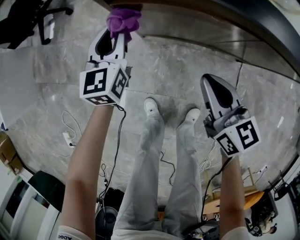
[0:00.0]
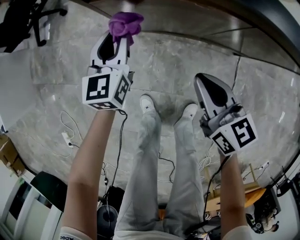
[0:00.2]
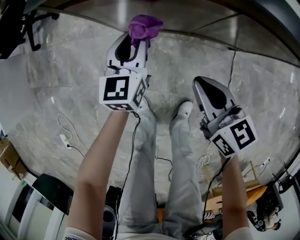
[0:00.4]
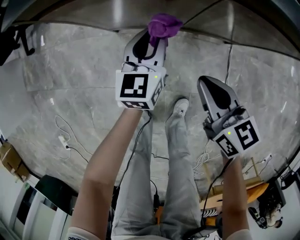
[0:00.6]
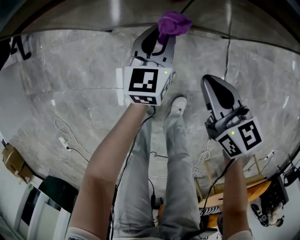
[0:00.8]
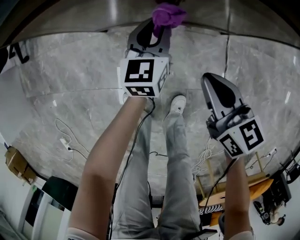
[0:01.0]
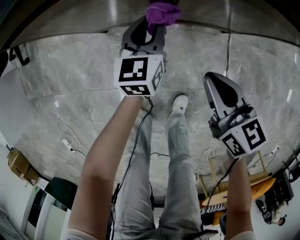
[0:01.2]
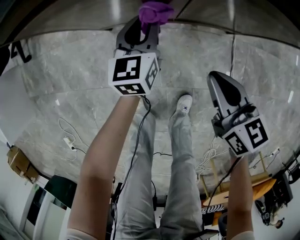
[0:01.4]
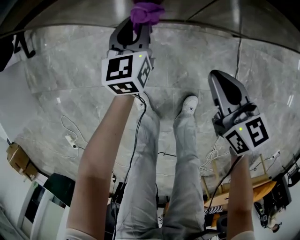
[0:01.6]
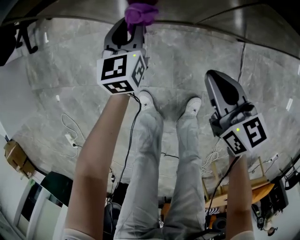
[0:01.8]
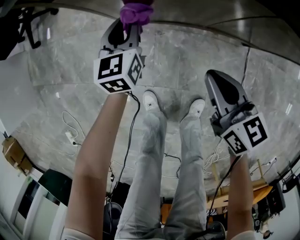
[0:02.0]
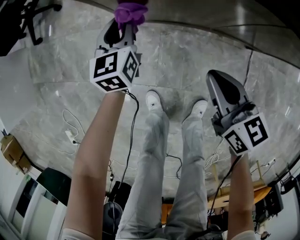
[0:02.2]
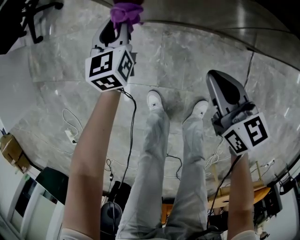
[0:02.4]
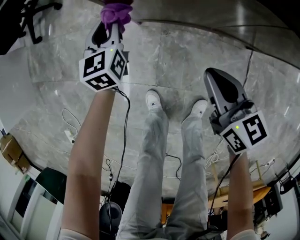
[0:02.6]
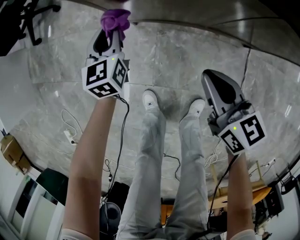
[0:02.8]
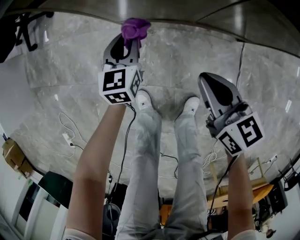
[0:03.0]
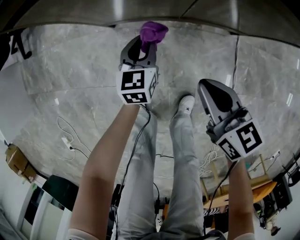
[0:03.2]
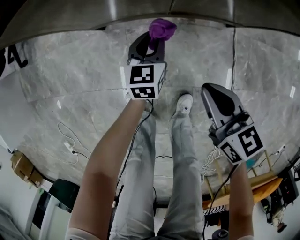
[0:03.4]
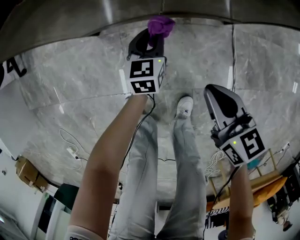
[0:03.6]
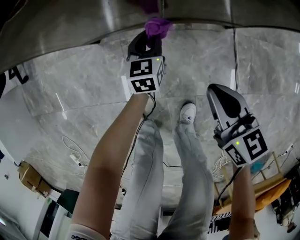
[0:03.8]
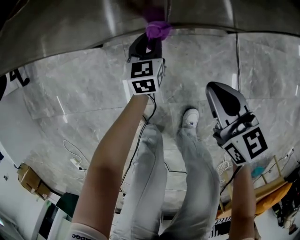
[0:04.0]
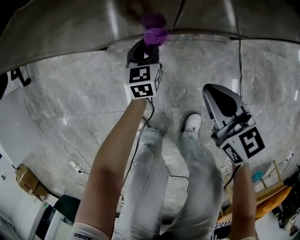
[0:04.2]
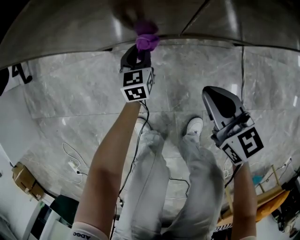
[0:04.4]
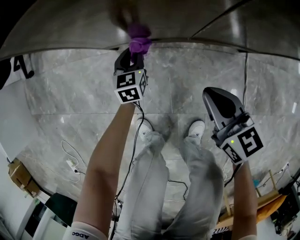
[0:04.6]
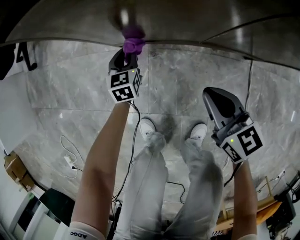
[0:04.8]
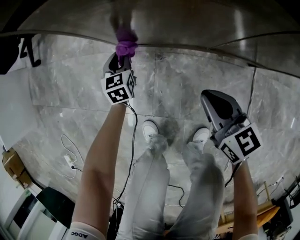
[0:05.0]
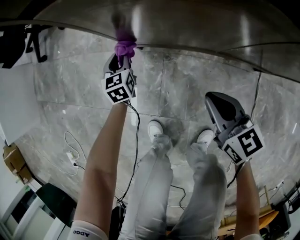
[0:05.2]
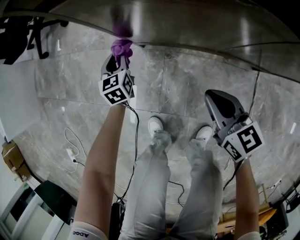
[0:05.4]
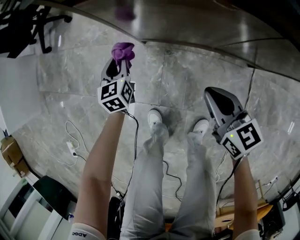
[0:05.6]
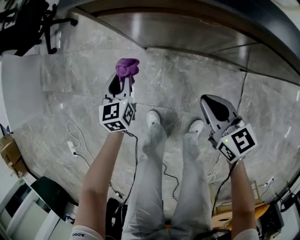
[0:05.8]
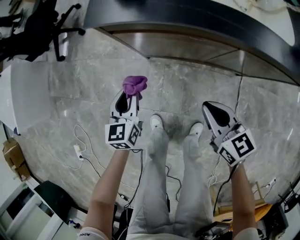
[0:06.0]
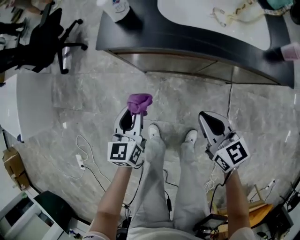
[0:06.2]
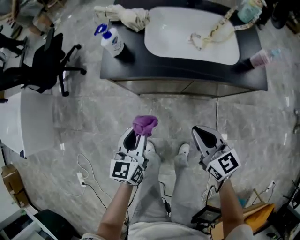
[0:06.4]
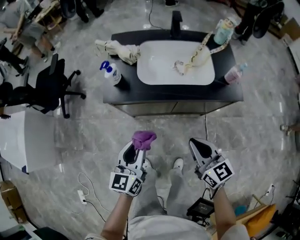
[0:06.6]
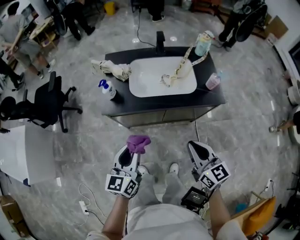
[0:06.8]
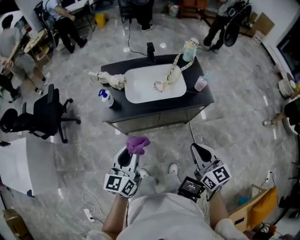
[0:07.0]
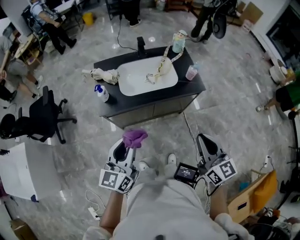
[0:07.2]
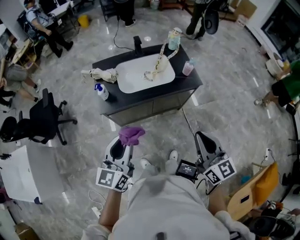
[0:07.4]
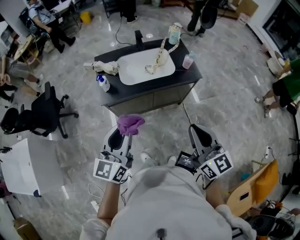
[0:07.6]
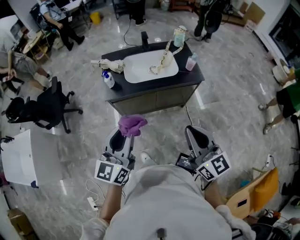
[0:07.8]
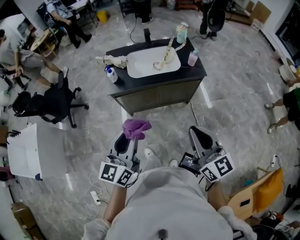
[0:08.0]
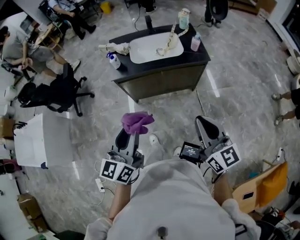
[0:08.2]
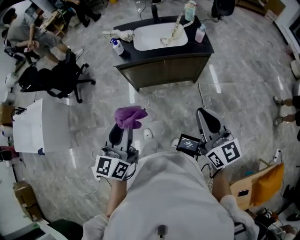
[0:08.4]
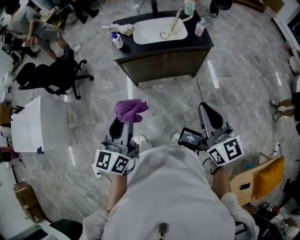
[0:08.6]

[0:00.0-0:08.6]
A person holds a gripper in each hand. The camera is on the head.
0:00.0 to 0:01.4: The left gripper shifts about 30 cm to the right and downward, while the right gripper shifts roughly 20 cm to the right, downward and backward.
0:01.4 to 0:02.8: The right gripper is displaced to the left and forward by some 15 cm. Meanwhile the left gripper goes some 25 cm to the left.
0:02.8 to 0:04.4: The right gripper moves downward and to the right, about 15 cm. The left gripper is displaced downward and to the right by about 30 cm.
0:04.4 to 0:05.8: The left gripper travels to the left and upward by approximately 30 cm. Meanwhile the right gripper is displaced upward and to the left by roughly 15 cm.
0:05.8 to 0:07.2: Both grippers move upward, about 60 cm. The right gripper turns by approximately 40 degrees. The left gripper changes its angle by approximately 50 degrees.
0:07.2 to 0:08.6: Both grippers travel together backward, roughly 25 cm.

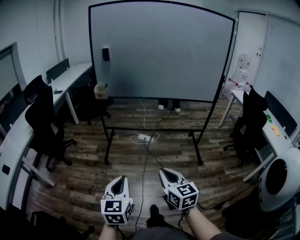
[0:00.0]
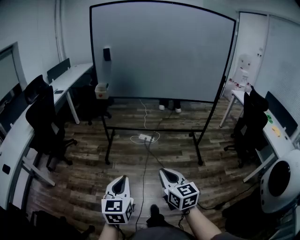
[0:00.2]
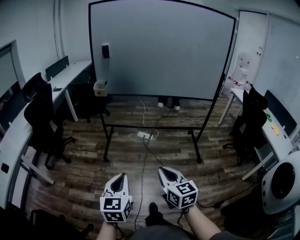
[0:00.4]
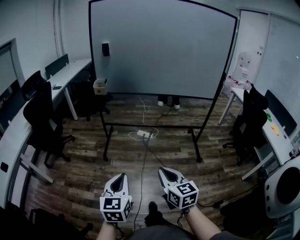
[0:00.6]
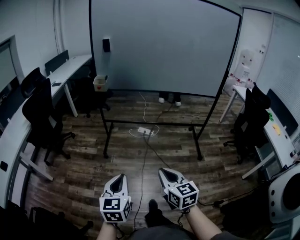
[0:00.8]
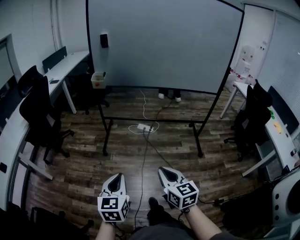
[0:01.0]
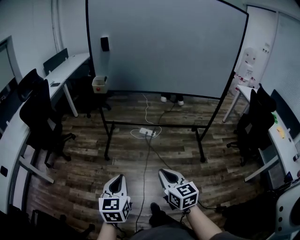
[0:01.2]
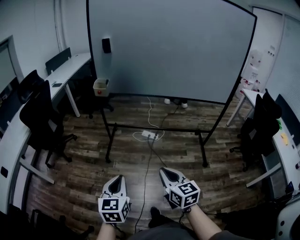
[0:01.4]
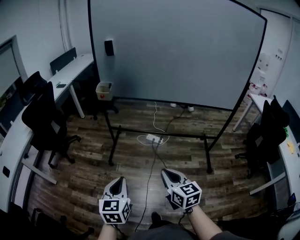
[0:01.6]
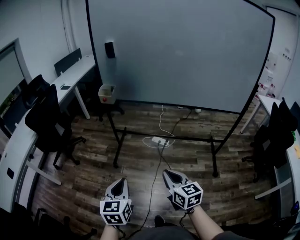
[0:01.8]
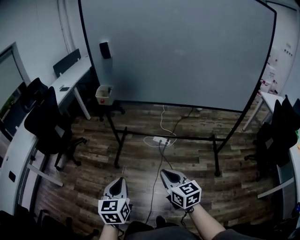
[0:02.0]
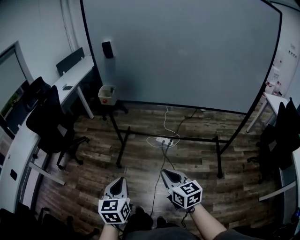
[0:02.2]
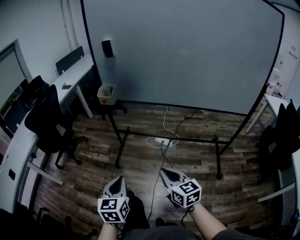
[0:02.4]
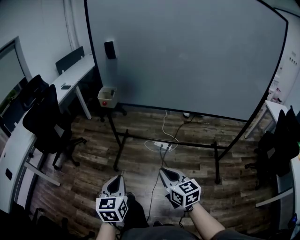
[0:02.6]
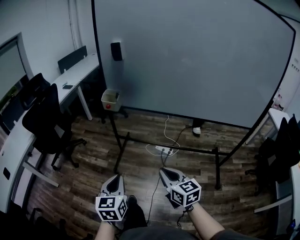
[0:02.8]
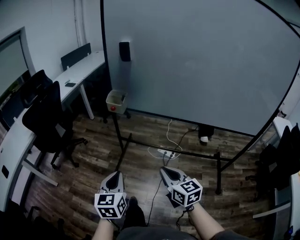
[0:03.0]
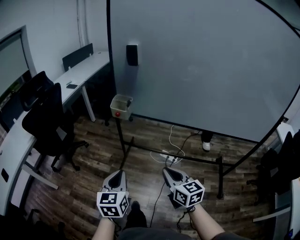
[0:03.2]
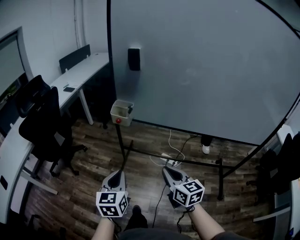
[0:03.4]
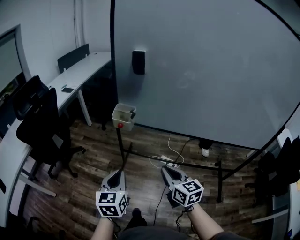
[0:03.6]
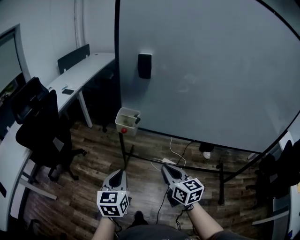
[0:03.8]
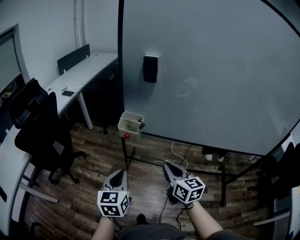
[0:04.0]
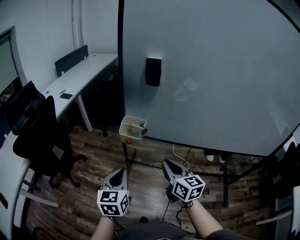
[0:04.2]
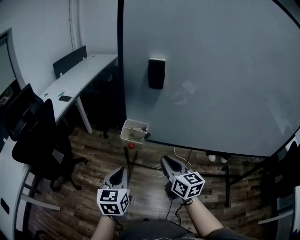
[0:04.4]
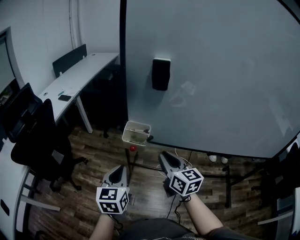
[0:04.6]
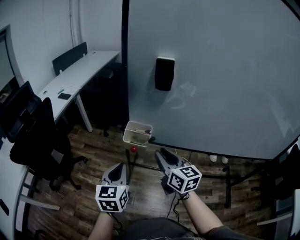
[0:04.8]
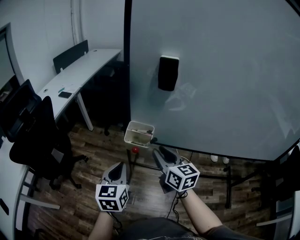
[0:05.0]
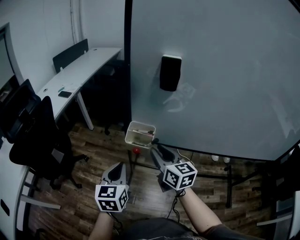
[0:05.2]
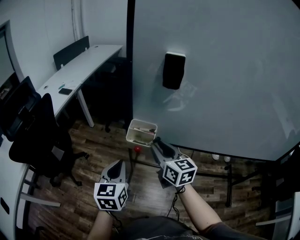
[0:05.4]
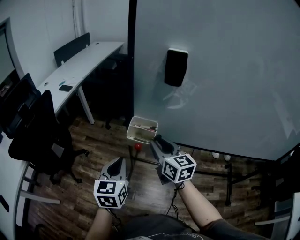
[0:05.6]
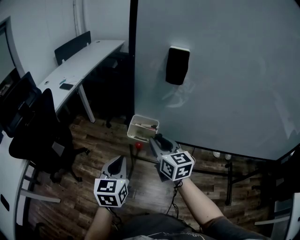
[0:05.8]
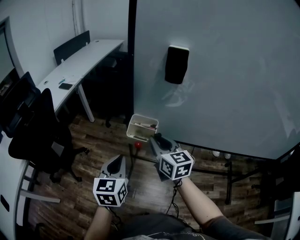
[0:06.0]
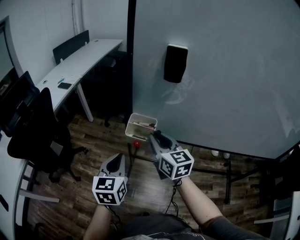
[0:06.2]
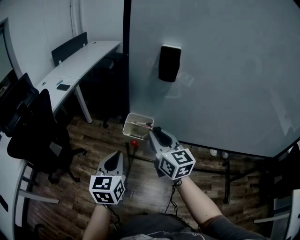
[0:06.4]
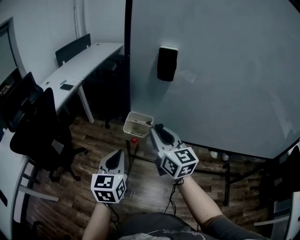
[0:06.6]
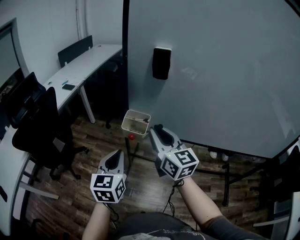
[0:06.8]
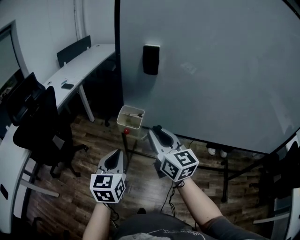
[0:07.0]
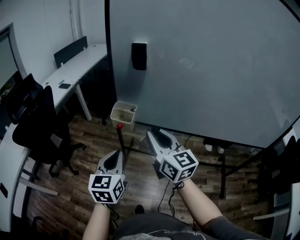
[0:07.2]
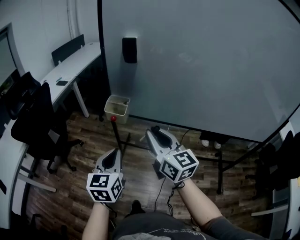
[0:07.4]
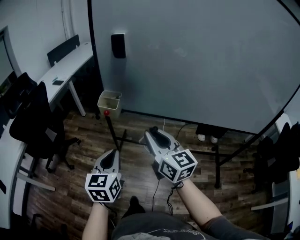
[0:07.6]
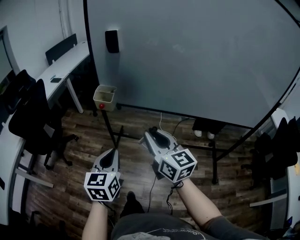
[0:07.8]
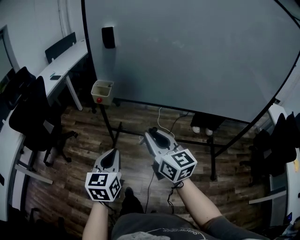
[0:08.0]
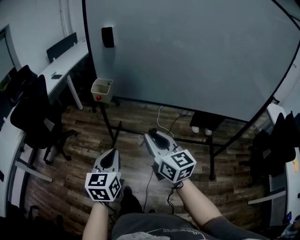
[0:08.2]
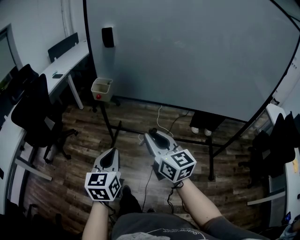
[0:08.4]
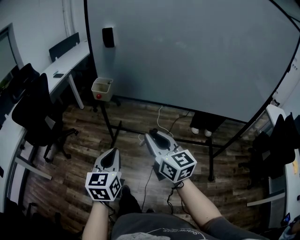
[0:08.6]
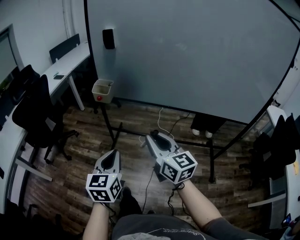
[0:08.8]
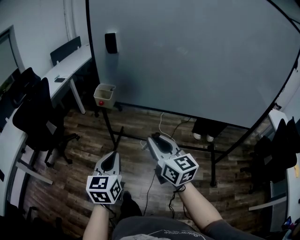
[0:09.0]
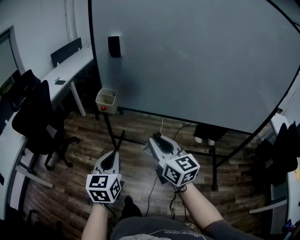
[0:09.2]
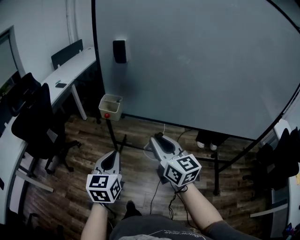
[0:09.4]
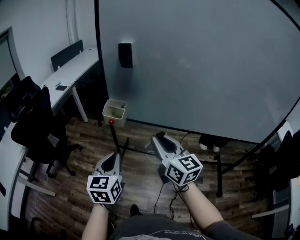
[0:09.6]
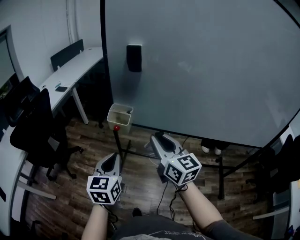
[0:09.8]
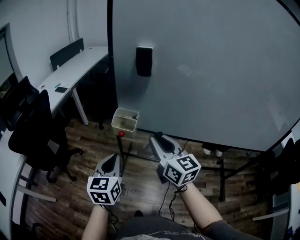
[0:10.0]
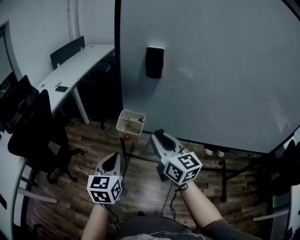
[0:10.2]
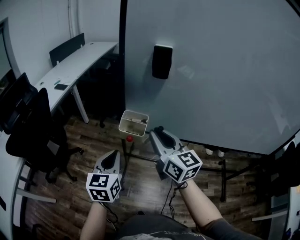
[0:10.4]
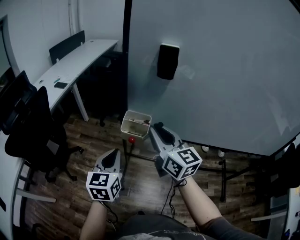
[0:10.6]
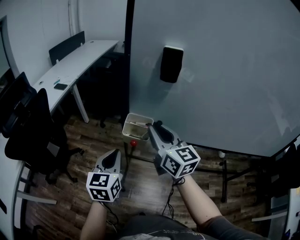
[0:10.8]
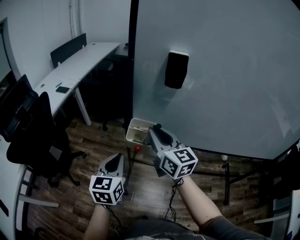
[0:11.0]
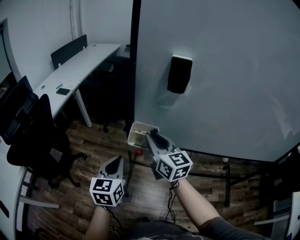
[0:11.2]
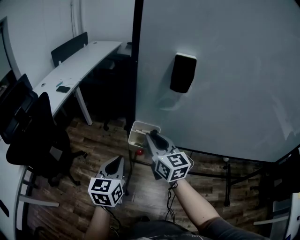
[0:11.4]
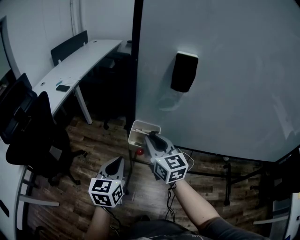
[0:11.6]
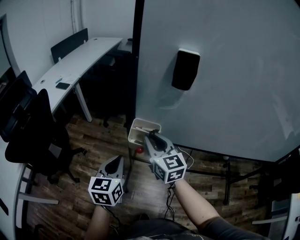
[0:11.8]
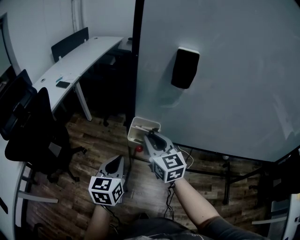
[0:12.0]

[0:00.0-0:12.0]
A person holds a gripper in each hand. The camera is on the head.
0:00.0 to 0:01.6: The two grippers go some 15 cm forward.
0:01.6 to 0:03.0: The two grippers go about 20 cm forward.
0:03.0 to 0:04.4: Both grippers move forward, approximately 30 cm.
0:04.4 to 0:06.0: The left gripper is displaced forward by approximately 5 cm; the right gripper travels forward and to the left by about 15 cm.
0:06.0 to 0:07.6: Both grippers travel together backward and to the right, about 25 cm.
0:07.6 to 0:09.0: The grippers both shift backward by about 10 cm.
0:09.0 to 0:10.4: Both grippers move forward and to the left, some 30 cm.
0:10.4 to 0:12.0: The right gripper moves forward, downward and to the left, roughly 10 cm. Meanwhile the left gripper shifts by approximately 5 cm.

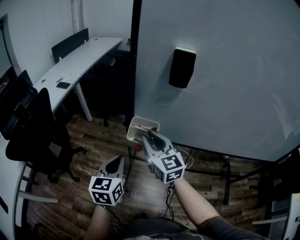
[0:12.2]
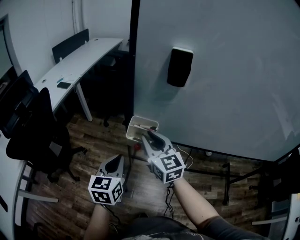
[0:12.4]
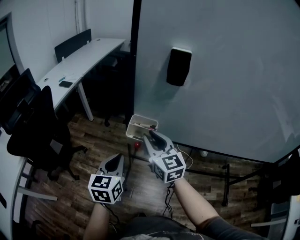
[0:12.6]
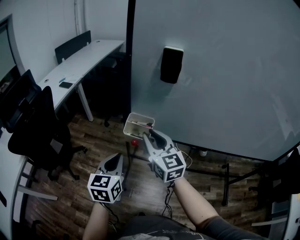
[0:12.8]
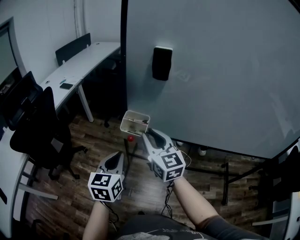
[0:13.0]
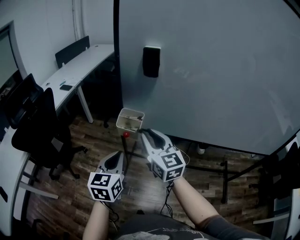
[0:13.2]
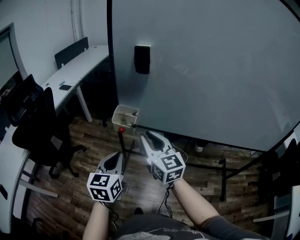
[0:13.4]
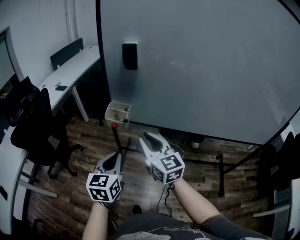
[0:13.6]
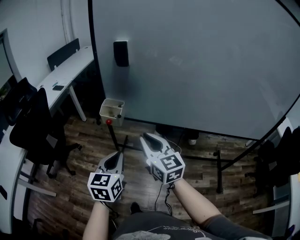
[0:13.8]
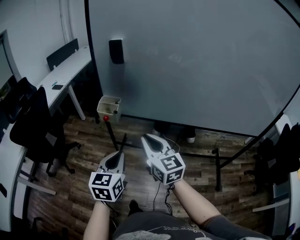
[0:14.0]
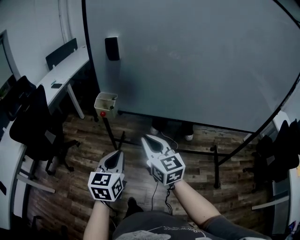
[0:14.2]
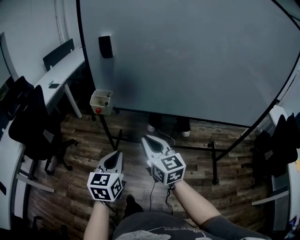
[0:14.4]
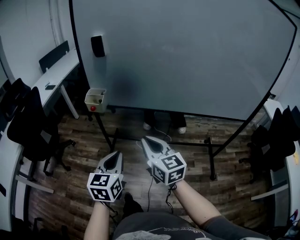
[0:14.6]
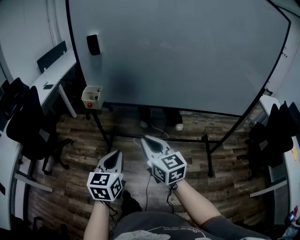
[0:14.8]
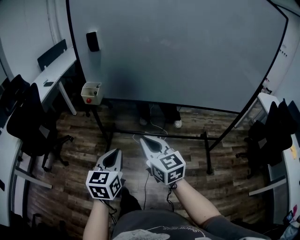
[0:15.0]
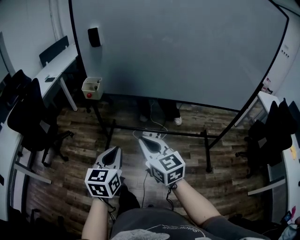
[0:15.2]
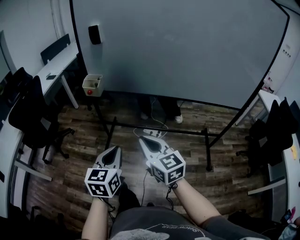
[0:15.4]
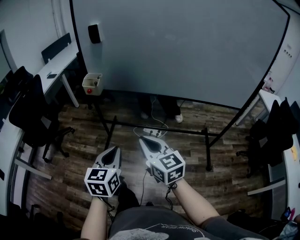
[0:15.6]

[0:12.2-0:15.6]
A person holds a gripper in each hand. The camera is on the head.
0:12.2 to 0:13.8: The two grippers go about 25 cm backward and to the right.
0:13.8 to 0:15.6: Both grippers travel together backward and to the right, approximately 25 cm.
